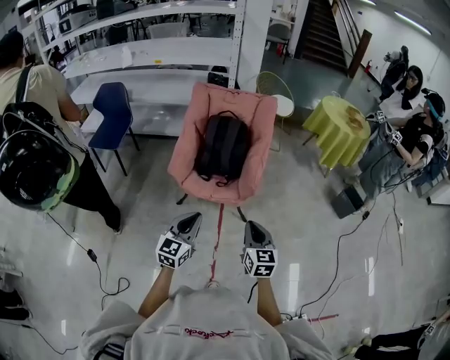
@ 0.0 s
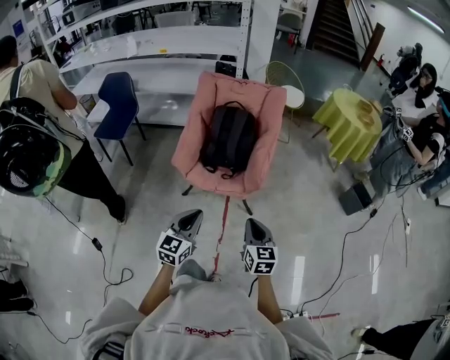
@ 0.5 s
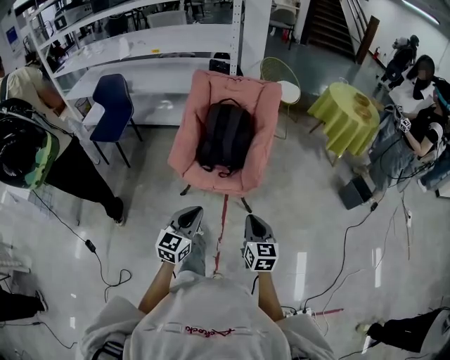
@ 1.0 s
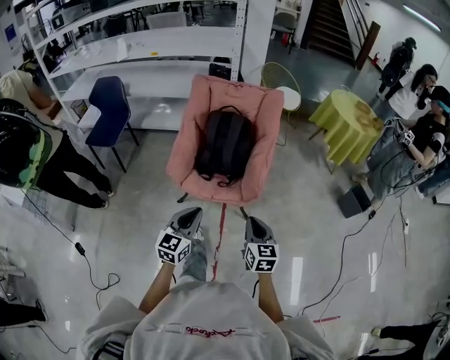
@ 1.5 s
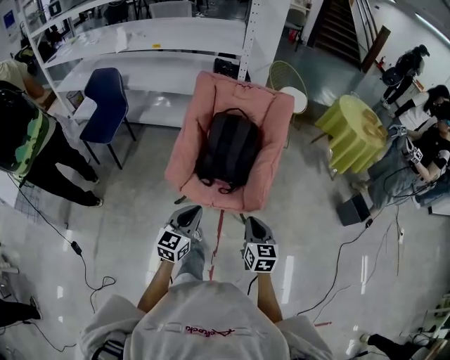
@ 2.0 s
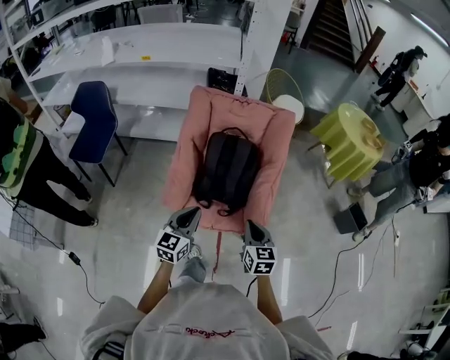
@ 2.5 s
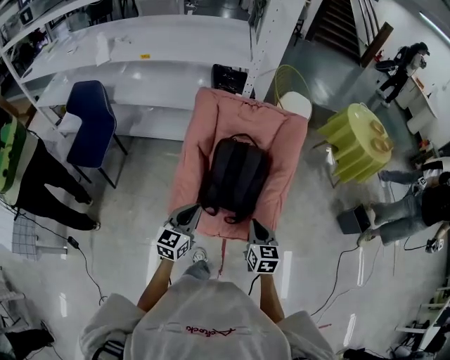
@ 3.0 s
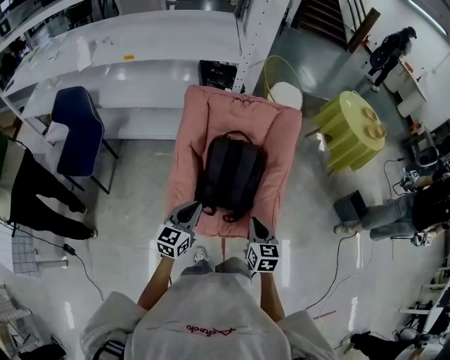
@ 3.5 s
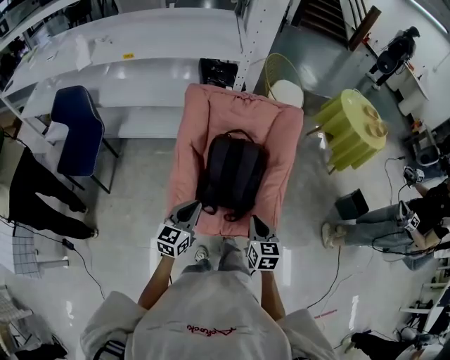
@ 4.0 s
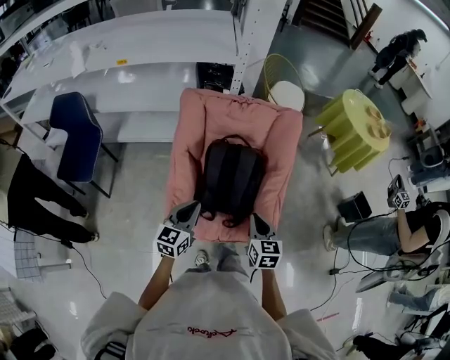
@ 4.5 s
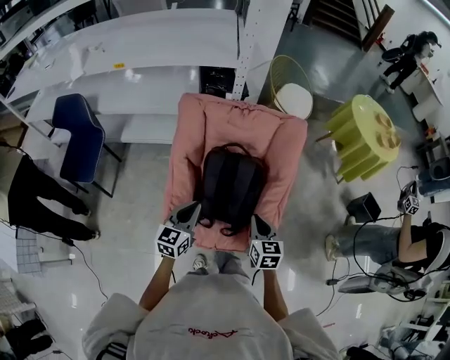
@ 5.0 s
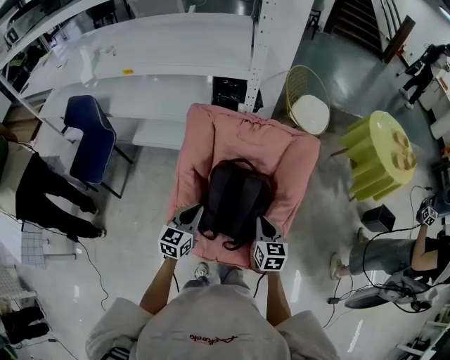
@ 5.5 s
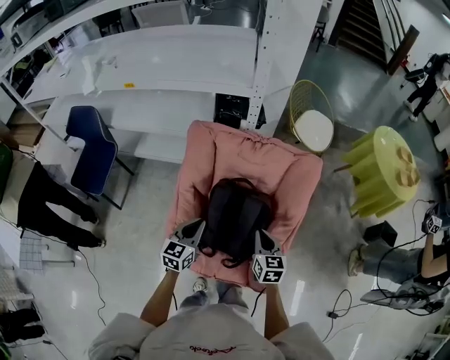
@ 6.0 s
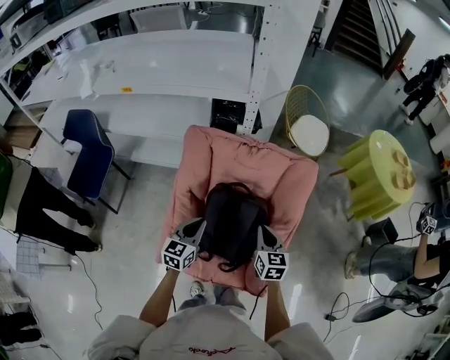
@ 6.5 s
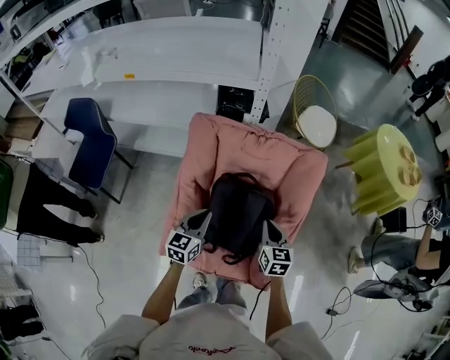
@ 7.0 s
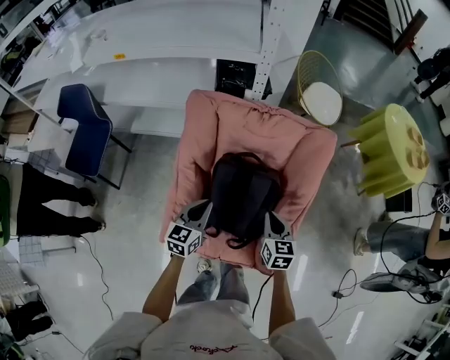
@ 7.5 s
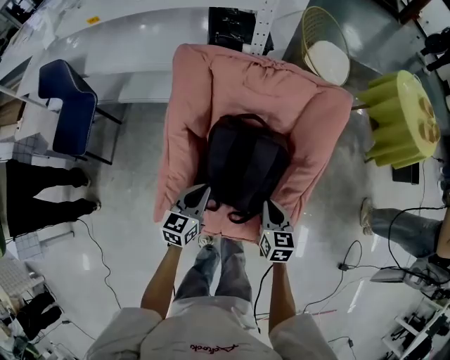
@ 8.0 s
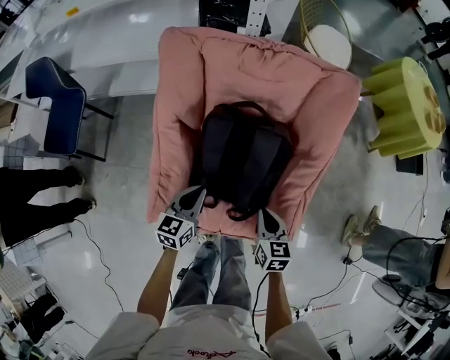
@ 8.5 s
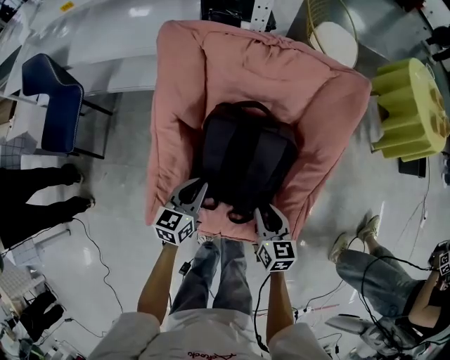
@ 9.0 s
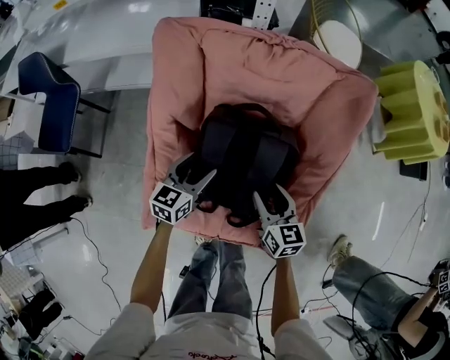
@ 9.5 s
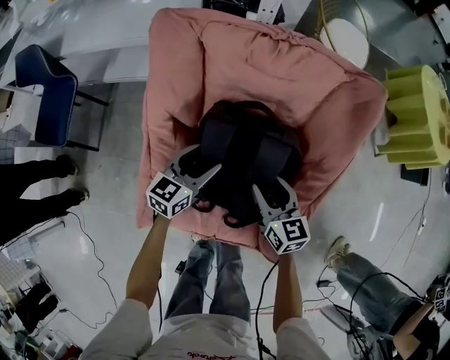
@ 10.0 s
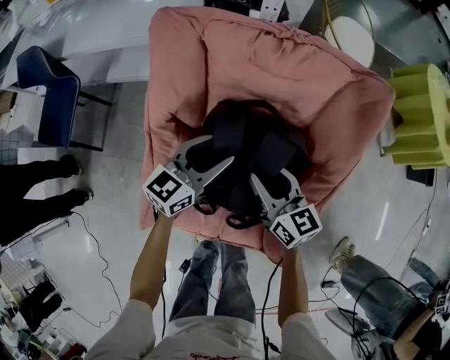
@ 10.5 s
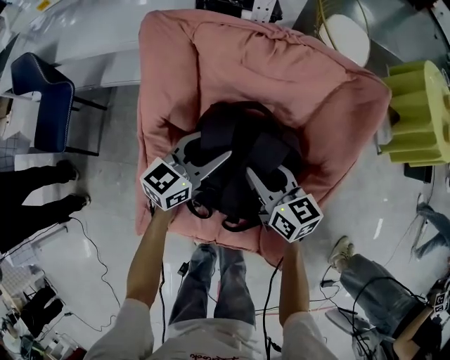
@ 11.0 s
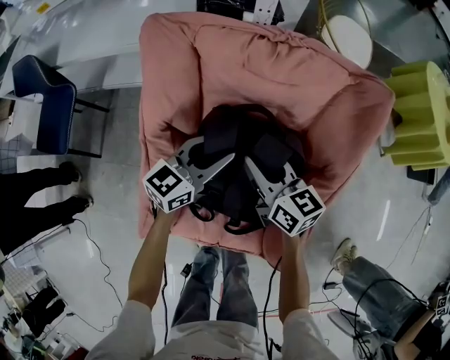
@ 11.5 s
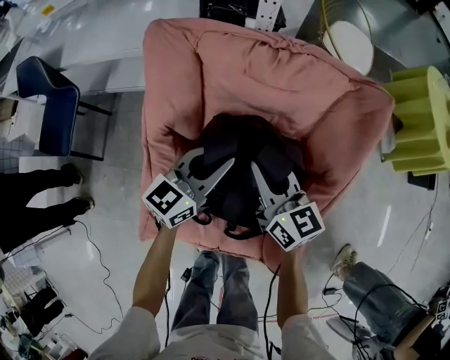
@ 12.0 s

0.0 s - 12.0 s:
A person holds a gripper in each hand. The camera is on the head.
0.0 s - 2.0 s: Both grippers move forward, some 20 cm.
2.0 s - 4.0 s: The grippers both shift forward and to the left by approximately 30 cm.
4.0 s - 6.0 s: The grippers both shift forward by roughly 20 cm.
6.0 s - 8.0 s: The two grippers go some 10 cm downward.
8.0 s - 10.0 s: The grippers both shift forward and downward by roughly 10 cm. The right gripper opens up. The left gripper opens up.
10.0 s - 12.0 s: The right gripper travels forward and upward by about 10 cm, and closes, while the left gripper shifts approximately 10 cm upward and forward, and closes up.

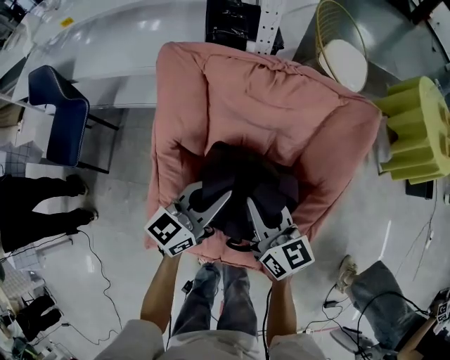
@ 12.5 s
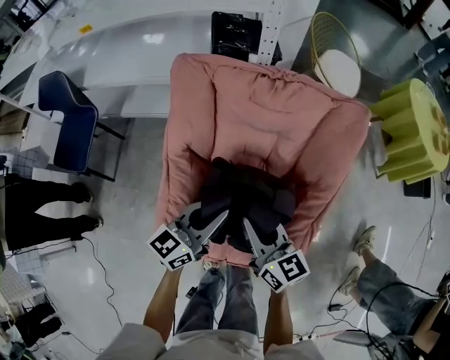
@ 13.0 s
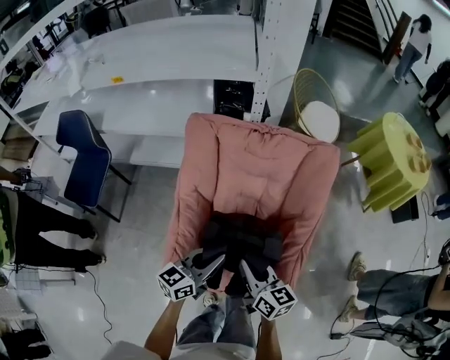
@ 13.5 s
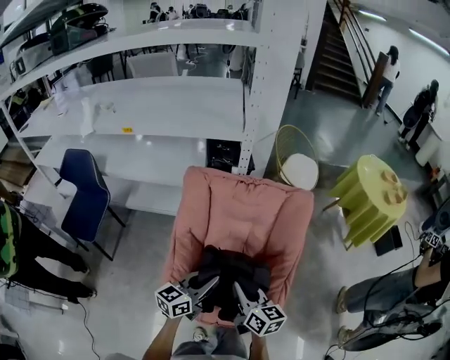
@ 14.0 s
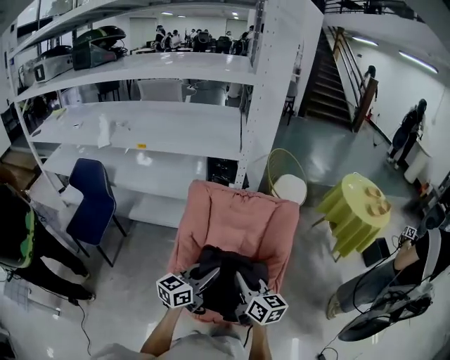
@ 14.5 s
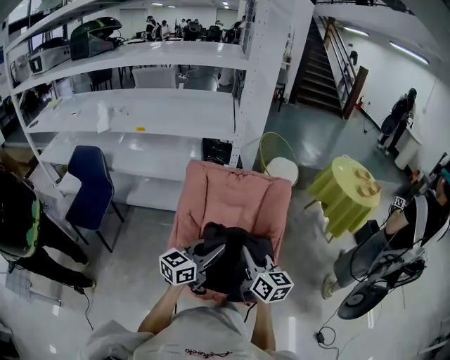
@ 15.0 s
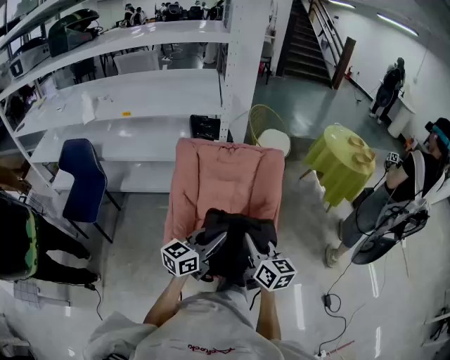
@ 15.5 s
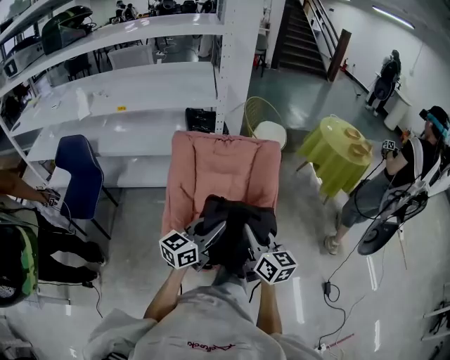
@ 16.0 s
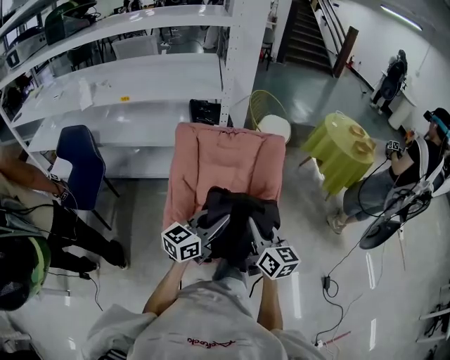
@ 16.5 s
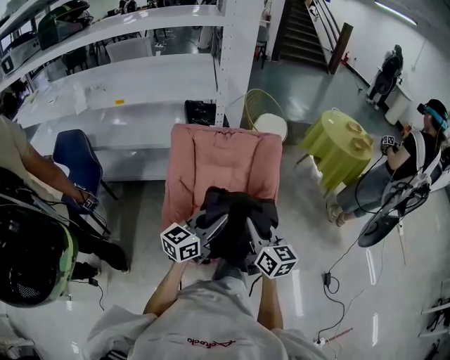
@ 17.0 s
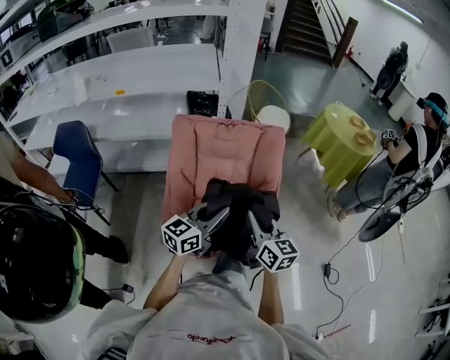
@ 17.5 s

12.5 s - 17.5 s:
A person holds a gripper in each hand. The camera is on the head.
12.5 s - 15.0 s: The two grippers go some 40 cm upward and backward.
15.0 s - 17.5 s: The grippers move only a little.

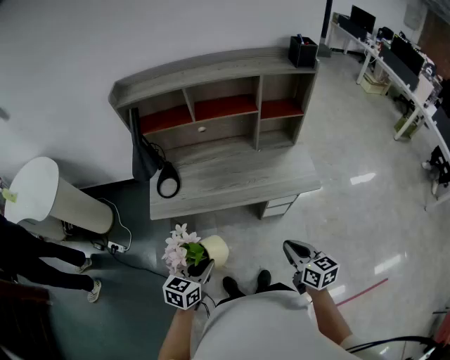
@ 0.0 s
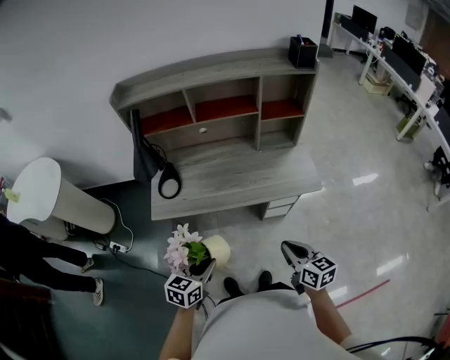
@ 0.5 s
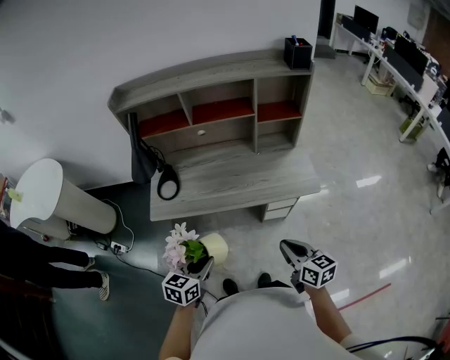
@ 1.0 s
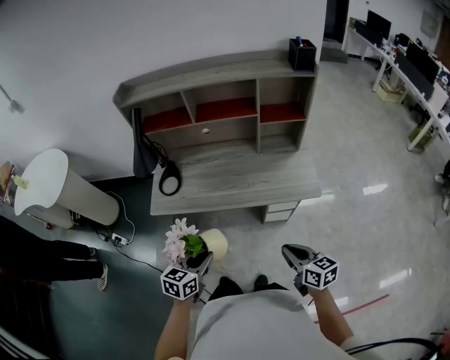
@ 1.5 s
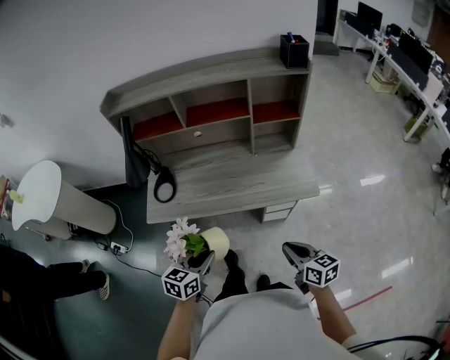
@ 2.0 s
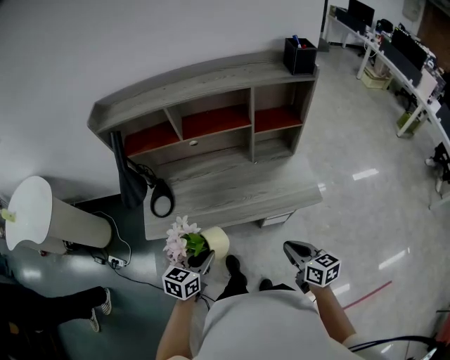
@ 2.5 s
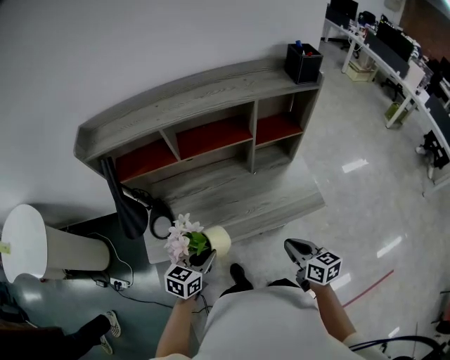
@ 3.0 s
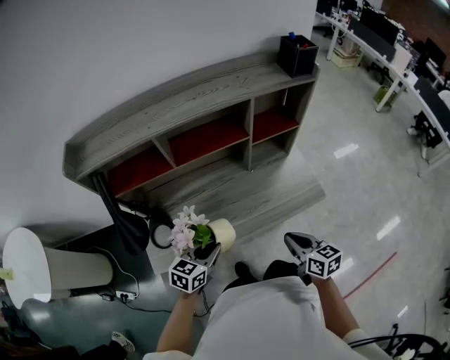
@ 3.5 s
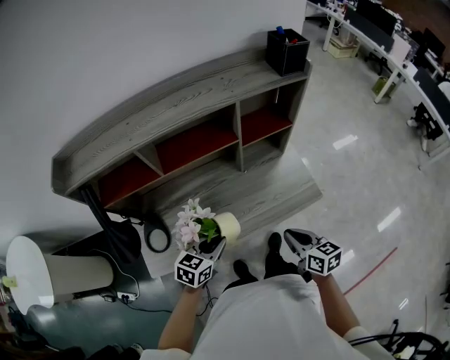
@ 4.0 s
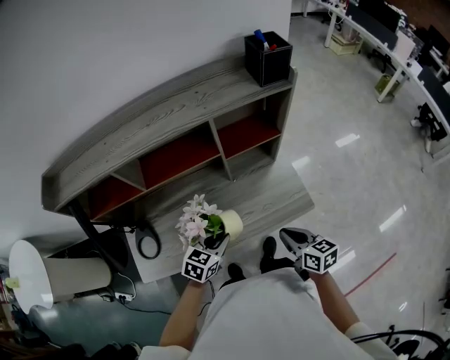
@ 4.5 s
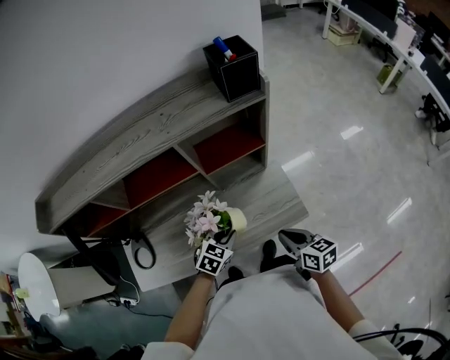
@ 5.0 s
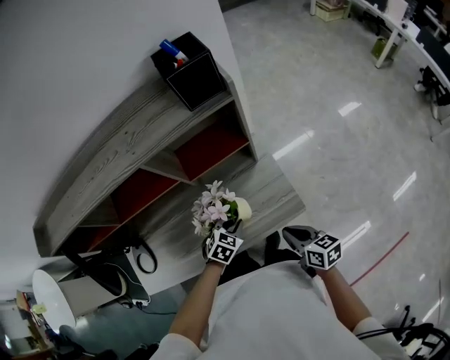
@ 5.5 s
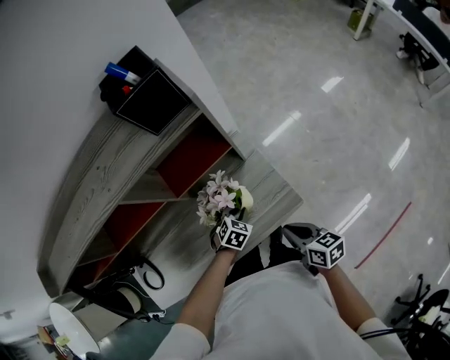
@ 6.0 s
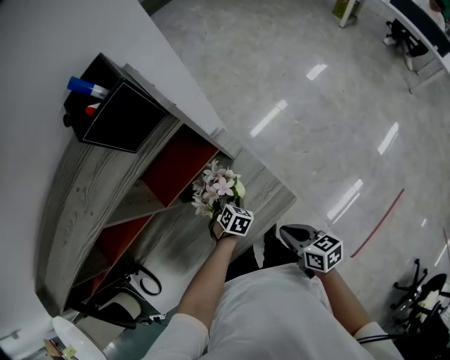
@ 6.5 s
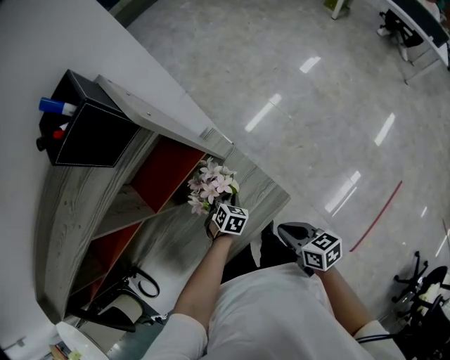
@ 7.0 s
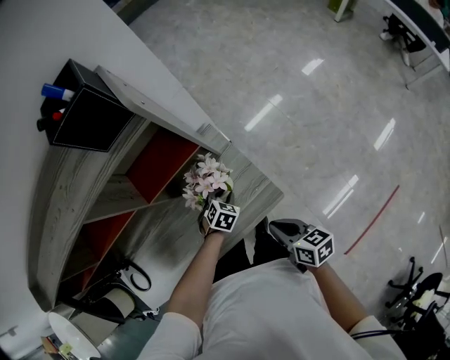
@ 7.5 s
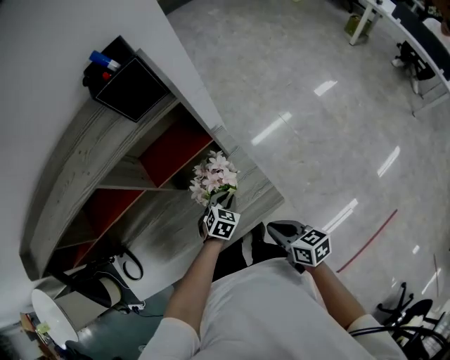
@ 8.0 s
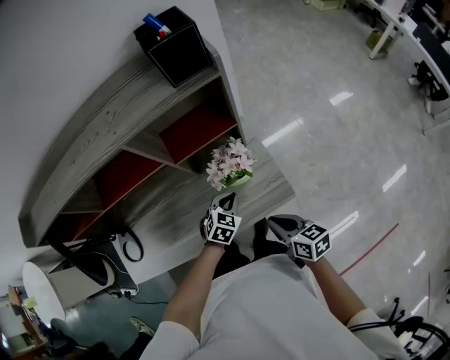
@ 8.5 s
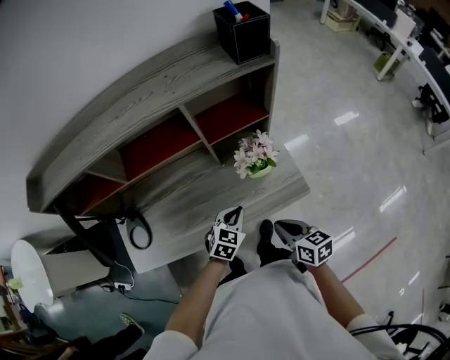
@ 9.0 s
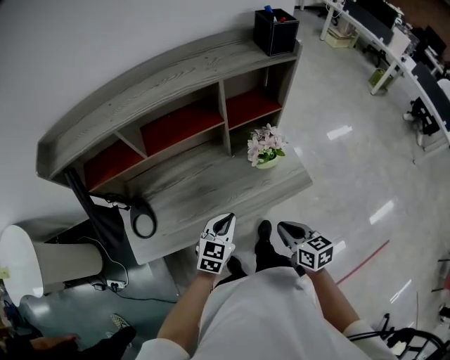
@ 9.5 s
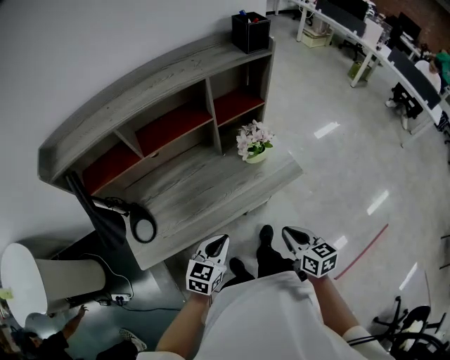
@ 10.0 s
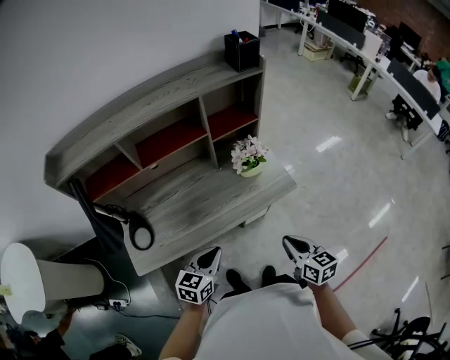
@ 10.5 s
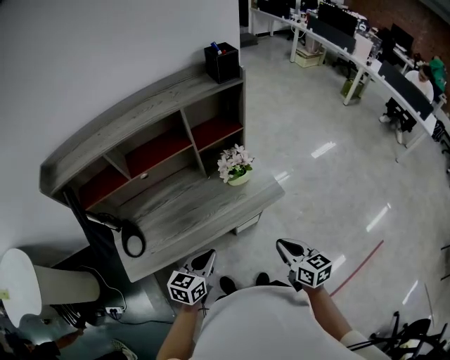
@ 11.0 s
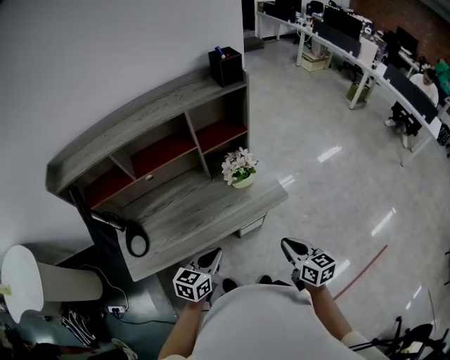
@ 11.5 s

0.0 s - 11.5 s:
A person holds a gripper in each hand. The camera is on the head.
0.0 s - 2.0 s: The left gripper heads to the right and forward, covering some 10 cm. Meanwhile the right gripper shifts roughly 5 cm to the right.
2.0 s - 4.0 s: Both grippers move forward, approximately 25 cm. The left gripper changes its angle by about 20 degrees.
4.0 s - 6.0 s: The left gripper shifts some 40 cm to the right, forward and downward, and swivels some 40 degrees. Meanwhile the right gripper is displaced to the right, forward and downward by roughly 25 cm.
6.0 s - 7.5 s: The left gripper shifts by approximately 10 cm.
7.5 s - 9.5 s: The left gripper travels to the left, backward and upward by about 40 cm, and points its fingers some 40 degrees further upward; the right gripper goes about 25 cm to the left and backward.
9.5 s - 11.5 s: The right gripper moves to the right, backward and upward, approximately 15 cm. Meanwhile the left gripper moves backward and upward, about 10 cm.
